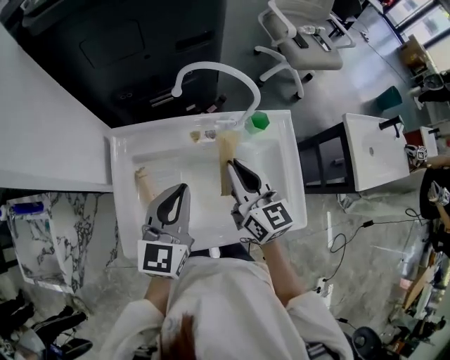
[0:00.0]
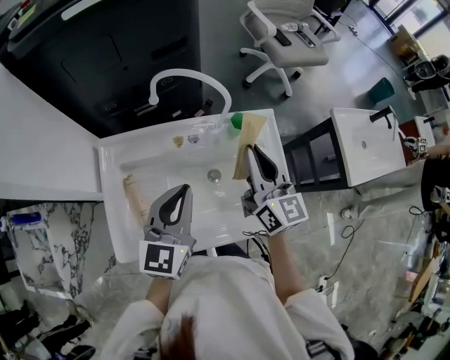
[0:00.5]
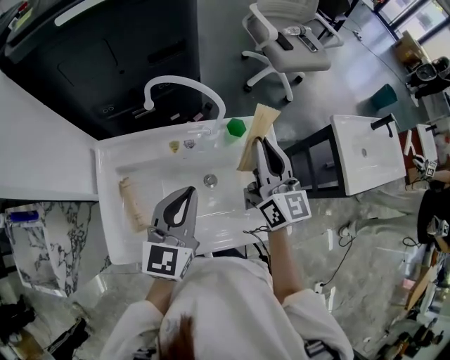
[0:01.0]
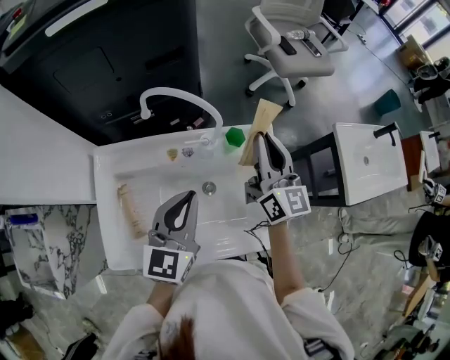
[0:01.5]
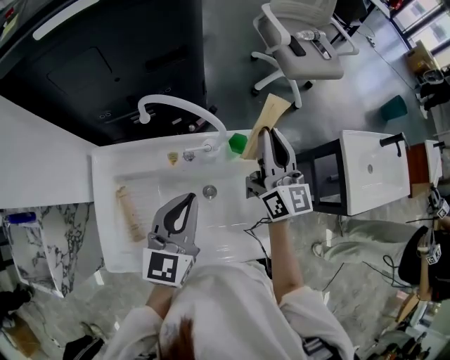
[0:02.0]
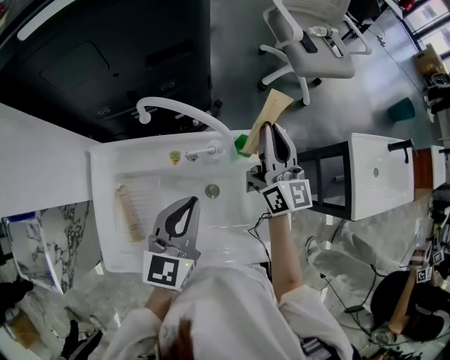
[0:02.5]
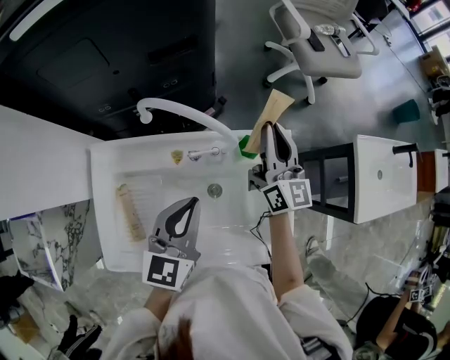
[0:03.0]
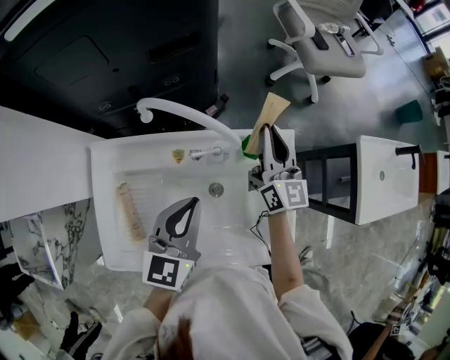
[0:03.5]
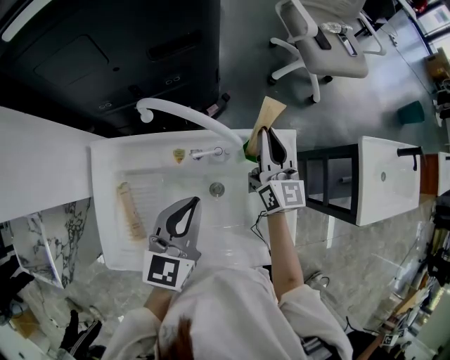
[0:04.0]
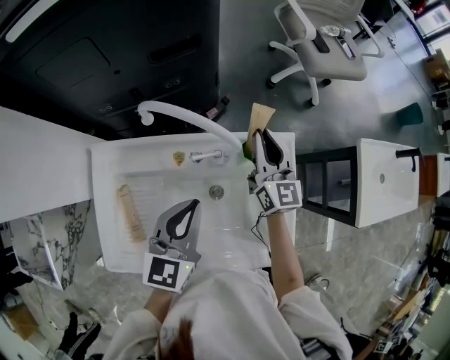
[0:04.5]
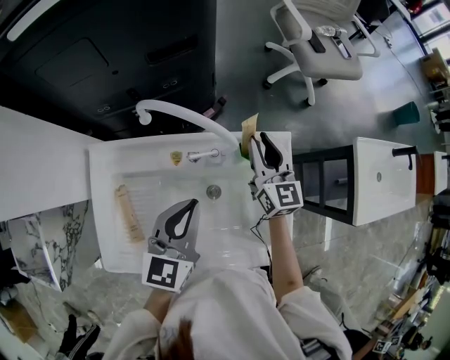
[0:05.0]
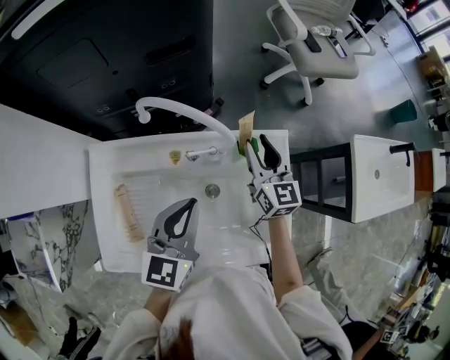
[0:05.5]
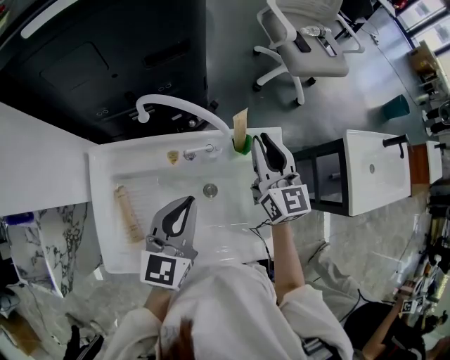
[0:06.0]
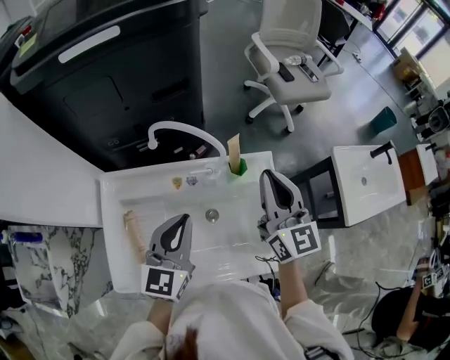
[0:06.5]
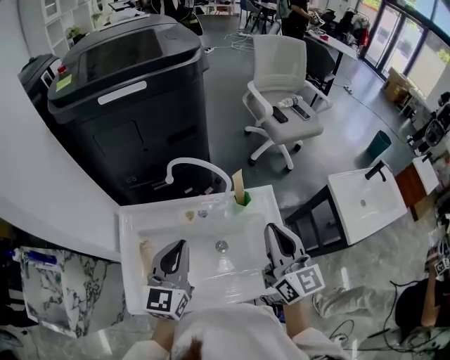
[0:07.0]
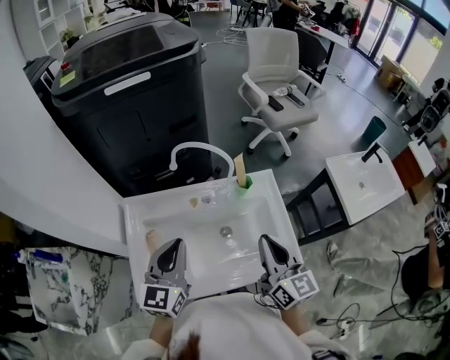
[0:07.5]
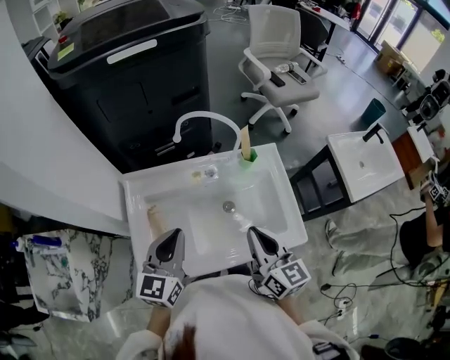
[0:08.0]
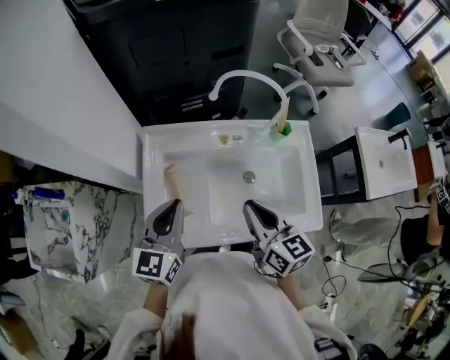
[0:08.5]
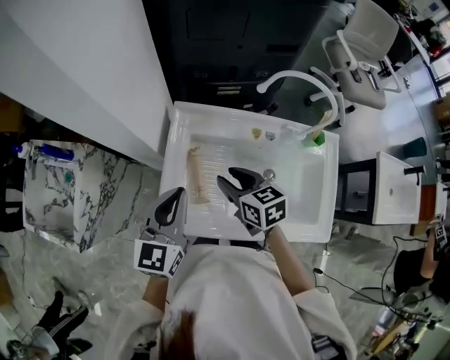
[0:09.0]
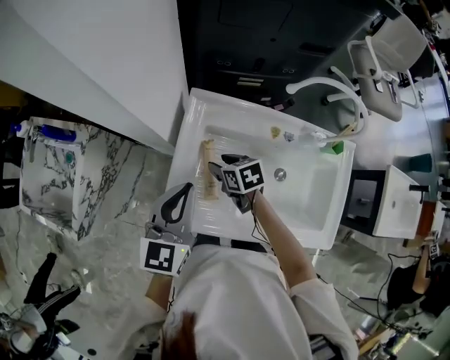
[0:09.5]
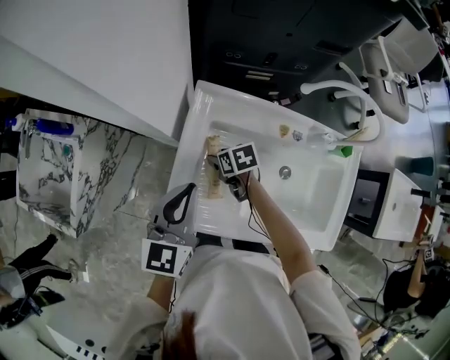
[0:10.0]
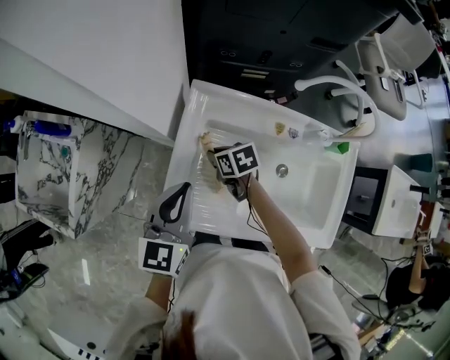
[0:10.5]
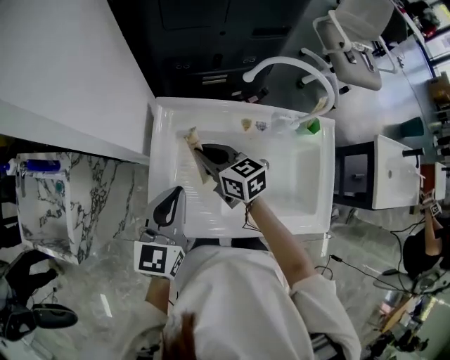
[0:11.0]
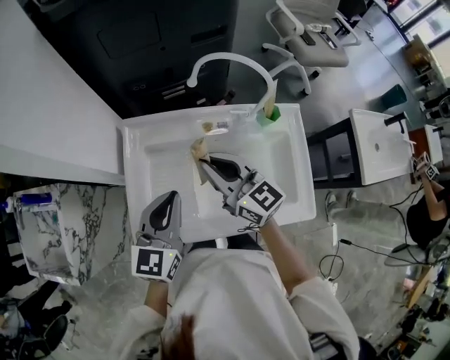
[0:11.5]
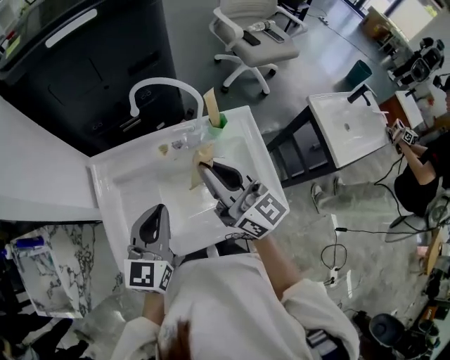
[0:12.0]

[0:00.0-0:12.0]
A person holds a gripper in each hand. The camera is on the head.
0.0 to 2.0 s: The right gripper is displaced to the right, forward and upward by roughly 20 cm, and changes its angle by roughly 20 degrees. The left gripper moves to the right and forward, roughly 10 cm.
2.0 to 4.0 s: The left gripper shifts by about 5 cm. The right gripper goes approximately 10 cm downward and forward.
4.0 to 6.0 s: The right gripper is displaced upward by about 5 cm.
6.0 to 8.0 s: The left gripper heads backward and to the left, covering approximately 20 cm, while the right gripper is displaced backward by approximately 30 cm.
8.0 to 10.0 s: The right gripper ends up some 50 cm from where it was, points its fingers some 50 degrees further downward, and opens up, while the left gripper moves approximately 20 cm, and rotates roughly 20 degrees.
10.0 to 12.0 s: The right gripper heads upward, covering about 35 cm, tips its fingers upward by about 70 degrees, and closes. Meanwhile the left gripper shifts by some 25 cm, and changes its angle by roughly 20 degrees.

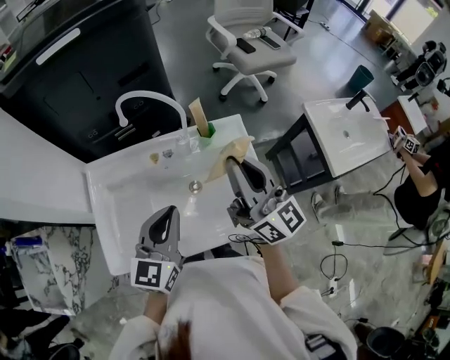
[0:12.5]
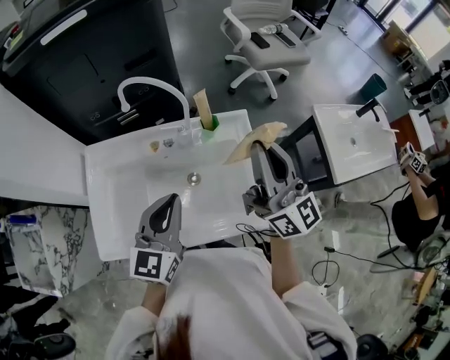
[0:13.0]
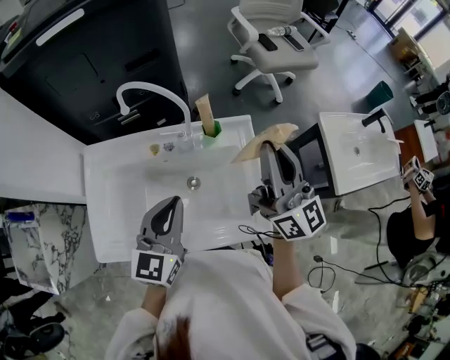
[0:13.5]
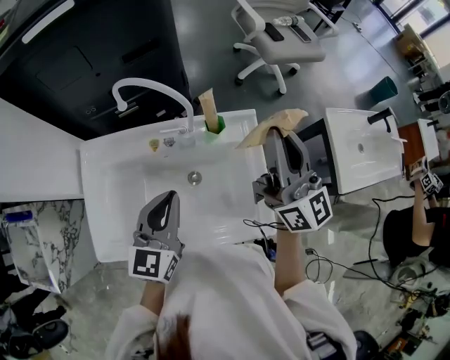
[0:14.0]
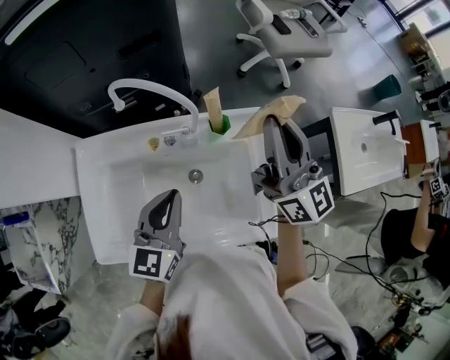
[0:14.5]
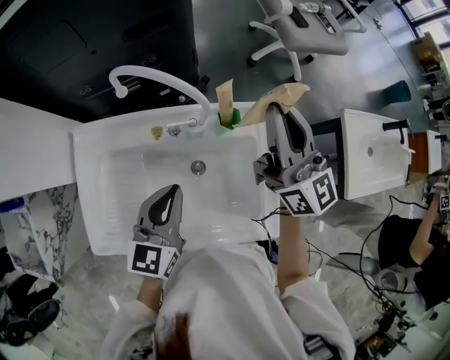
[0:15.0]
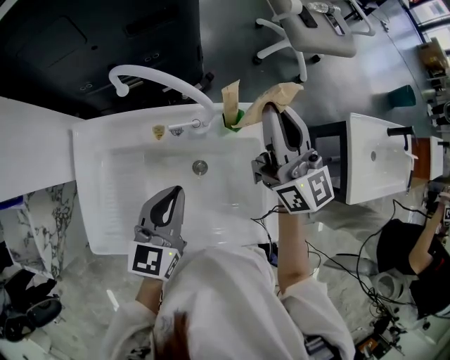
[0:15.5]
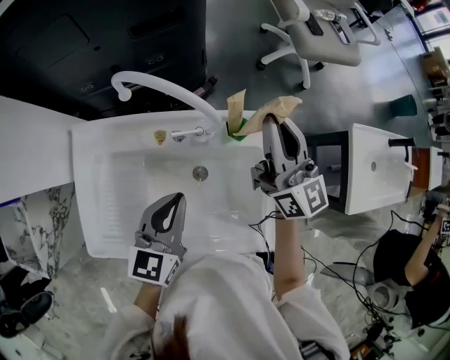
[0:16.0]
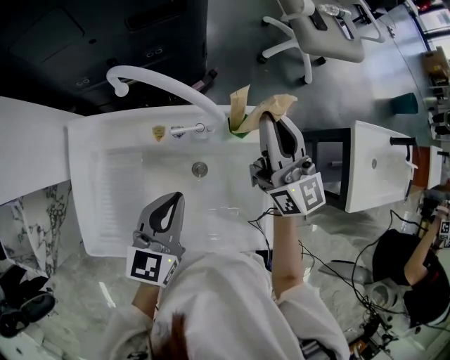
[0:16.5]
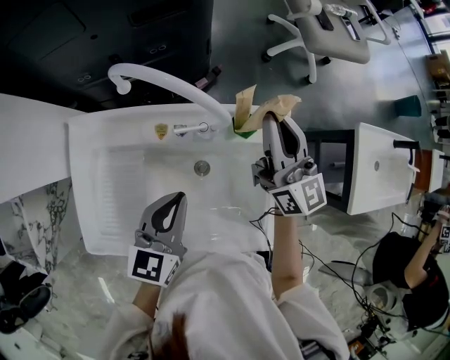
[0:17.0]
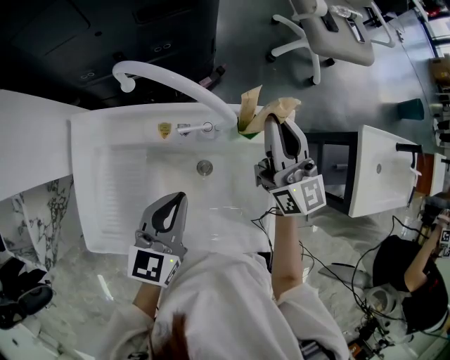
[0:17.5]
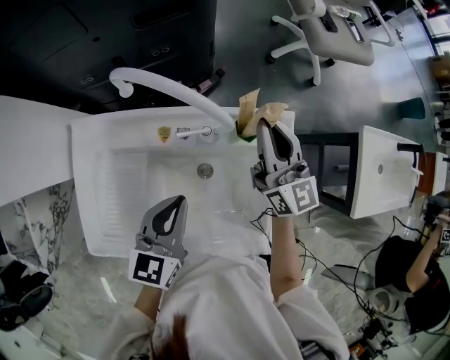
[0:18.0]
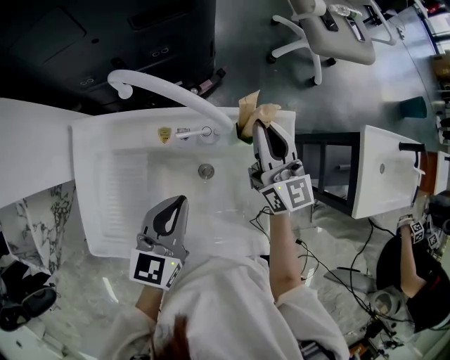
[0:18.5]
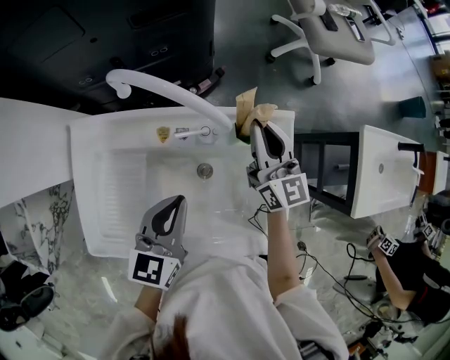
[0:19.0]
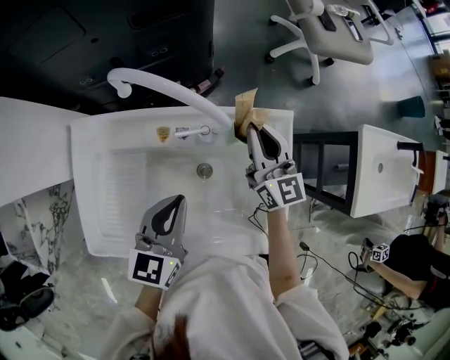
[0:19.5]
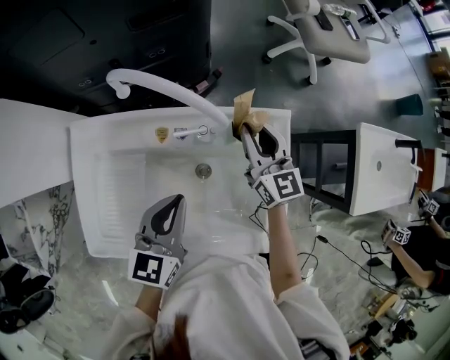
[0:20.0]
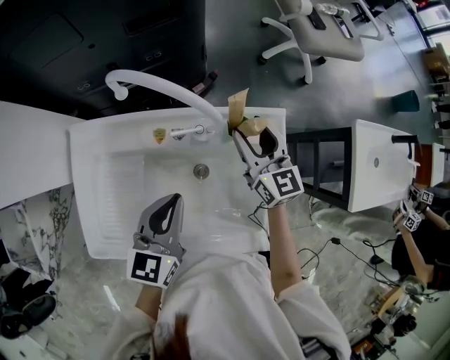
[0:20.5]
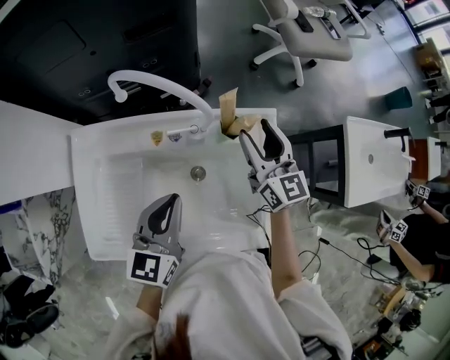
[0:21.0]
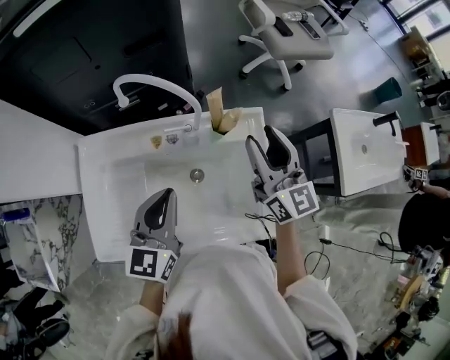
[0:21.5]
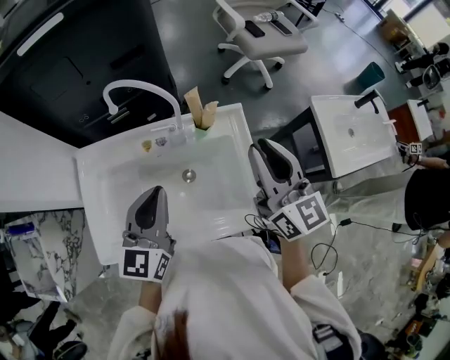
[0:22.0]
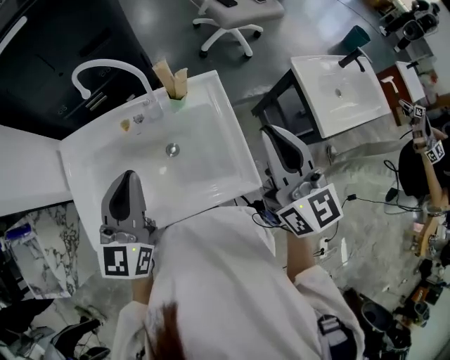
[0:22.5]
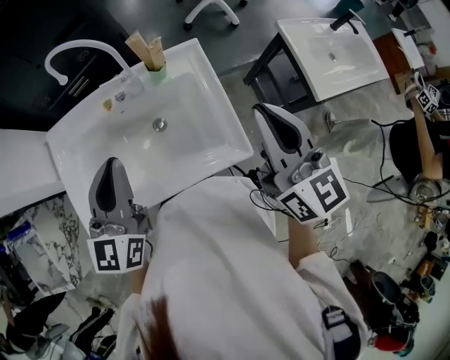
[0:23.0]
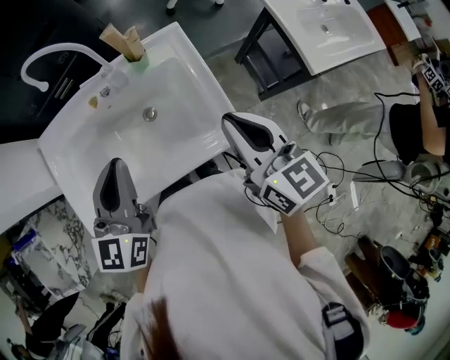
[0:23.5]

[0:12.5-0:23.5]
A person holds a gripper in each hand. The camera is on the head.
12.5 to 14.5 s: The right gripper is displaced forward by approximately 15 cm, while the left gripper is displaced forward by some 10 cm.
14.5 to 16.0 s: The right gripper moves downward and forward, about 10 cm.
16.0 to 18.0 s: The right gripper heads downward, covering approximately 10 cm.
18.0 to 20.0 s: The right gripper moves downward, some 5 cm.
20.0 to 21.5 s: The left gripper travels upward by some 5 cm. The right gripper moves upward and backward, some 15 cm, and opens.
21.5 to 23.5 s: The right gripper heads backward, covering approximately 25 cm, and closes up. The left gripper travels backward, to the right and upward by roughly 15 cm.

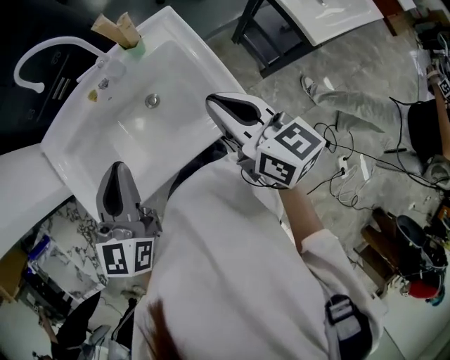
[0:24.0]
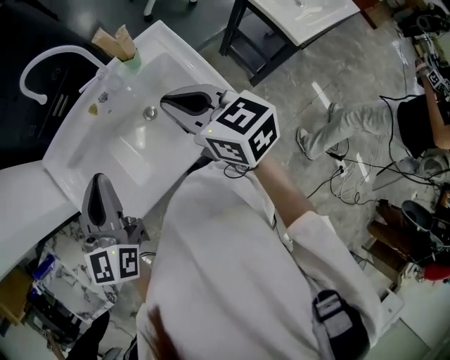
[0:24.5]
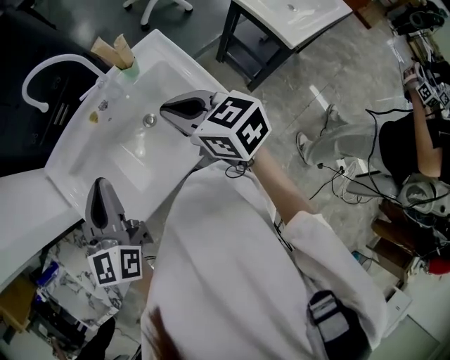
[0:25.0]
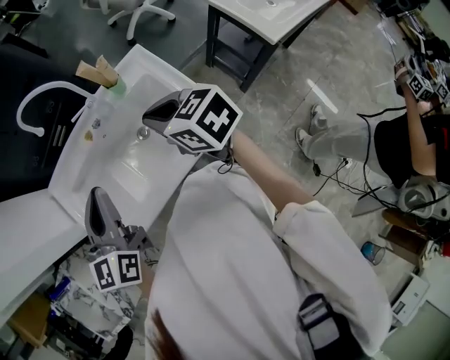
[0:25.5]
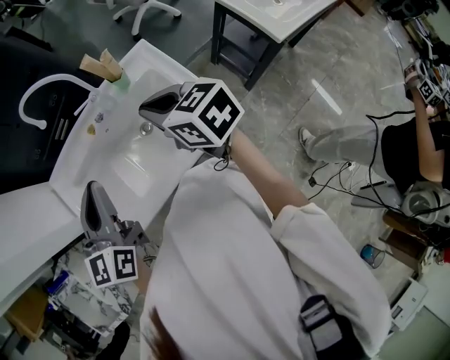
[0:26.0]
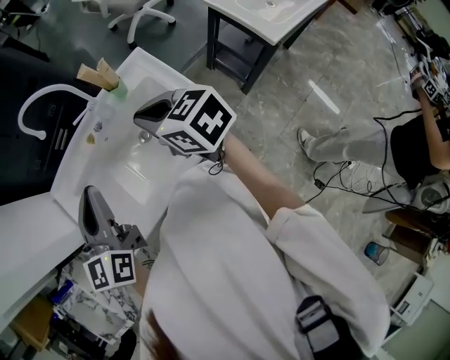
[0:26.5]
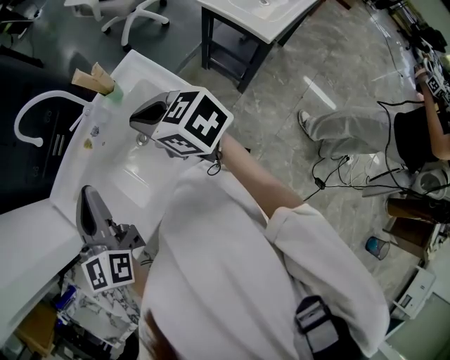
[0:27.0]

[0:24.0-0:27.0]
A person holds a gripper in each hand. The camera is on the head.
24.0 to 25.5 s: The right gripper shifts some 5 cm to the left, and turns by about 20 degrees.
25.5 to 27.0 s: The grippers make only small movements.

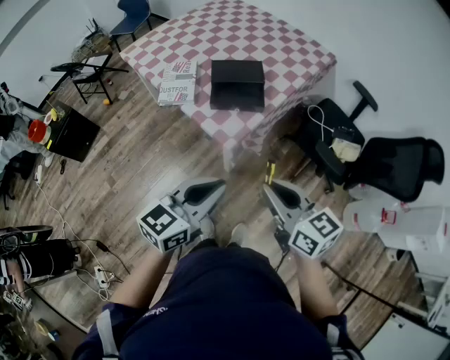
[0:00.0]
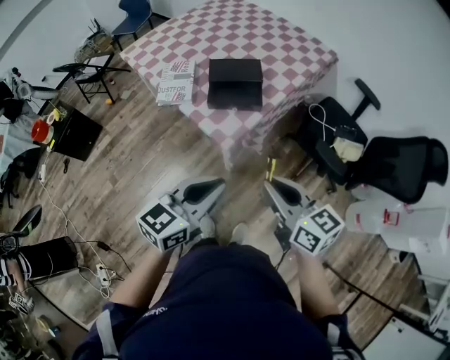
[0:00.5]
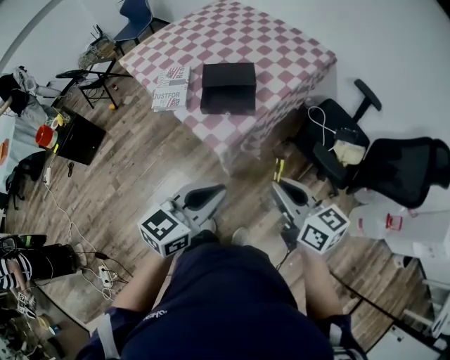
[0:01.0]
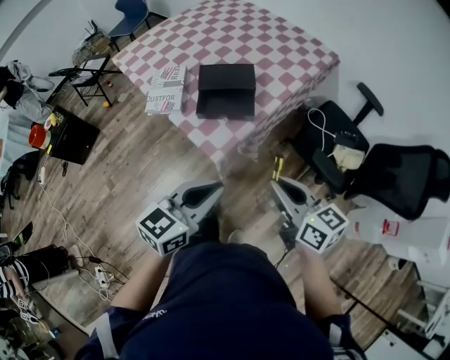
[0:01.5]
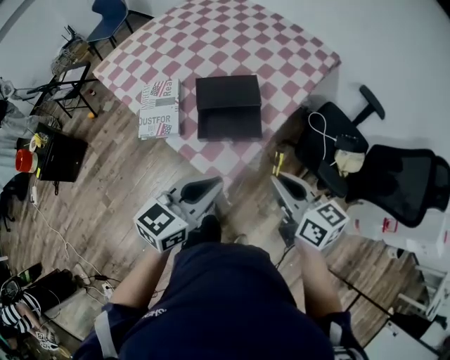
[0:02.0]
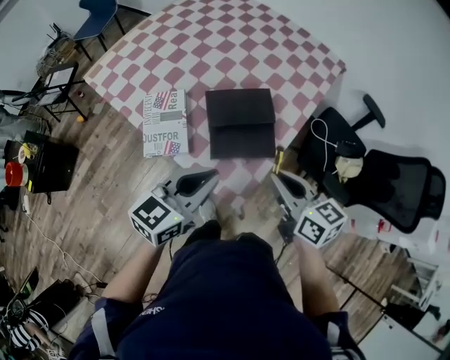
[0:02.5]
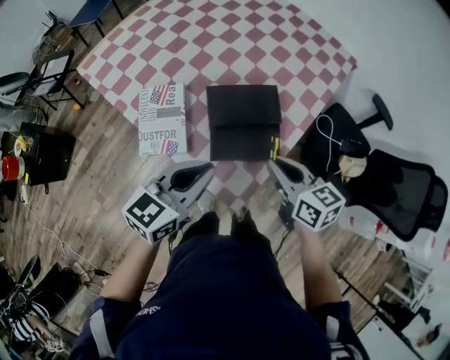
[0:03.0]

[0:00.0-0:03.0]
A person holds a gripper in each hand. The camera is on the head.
0.0 to 1.5 s: The two grippers go about 10 cm forward and to the right.
1.5 to 3.0 s: The two grippers go approximately 30 cm forward and to the left.
